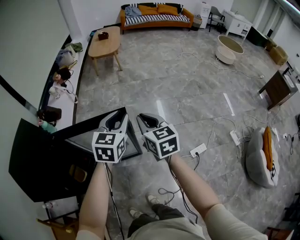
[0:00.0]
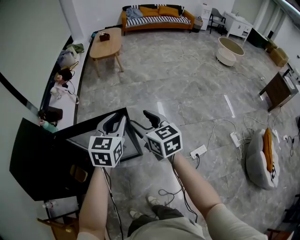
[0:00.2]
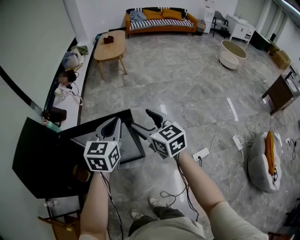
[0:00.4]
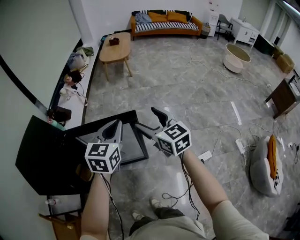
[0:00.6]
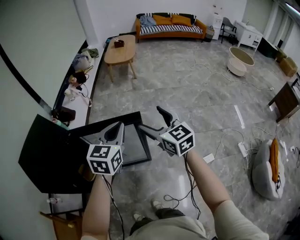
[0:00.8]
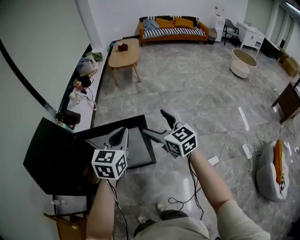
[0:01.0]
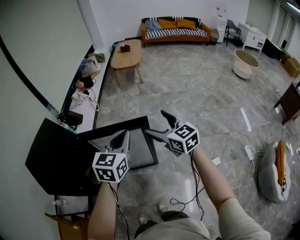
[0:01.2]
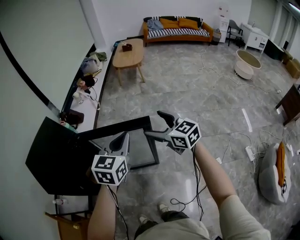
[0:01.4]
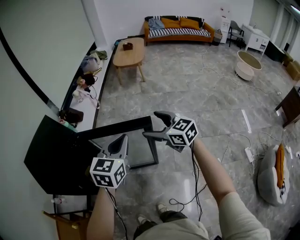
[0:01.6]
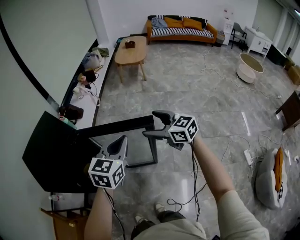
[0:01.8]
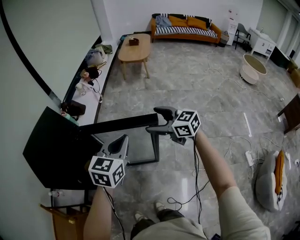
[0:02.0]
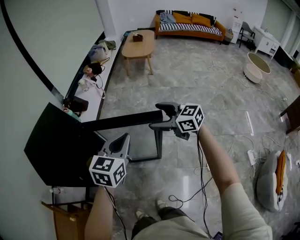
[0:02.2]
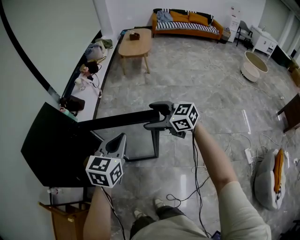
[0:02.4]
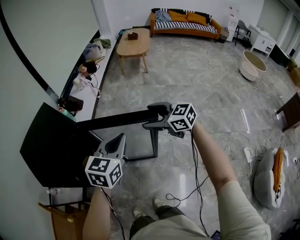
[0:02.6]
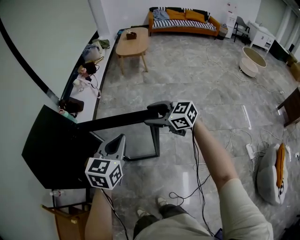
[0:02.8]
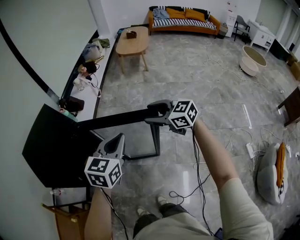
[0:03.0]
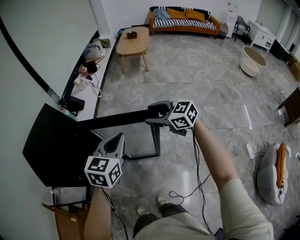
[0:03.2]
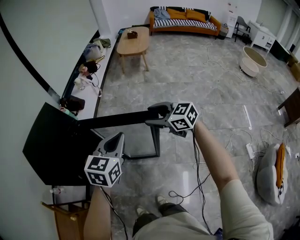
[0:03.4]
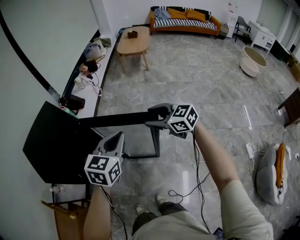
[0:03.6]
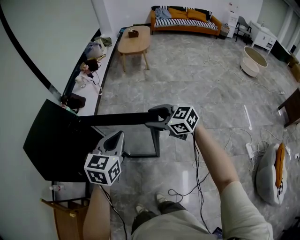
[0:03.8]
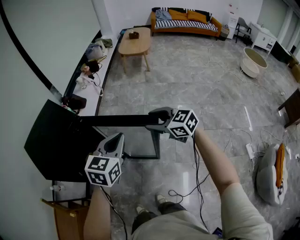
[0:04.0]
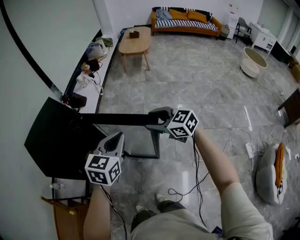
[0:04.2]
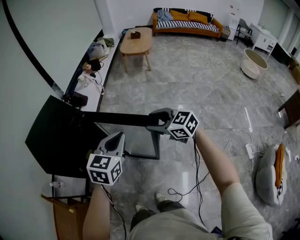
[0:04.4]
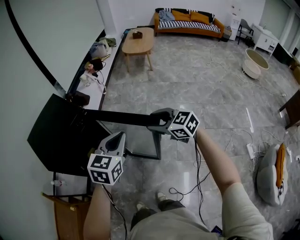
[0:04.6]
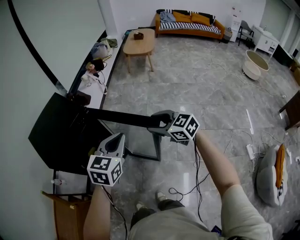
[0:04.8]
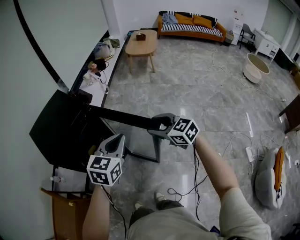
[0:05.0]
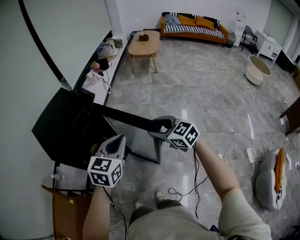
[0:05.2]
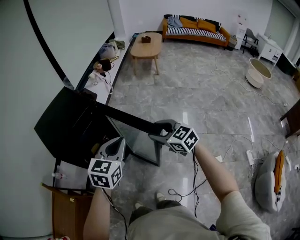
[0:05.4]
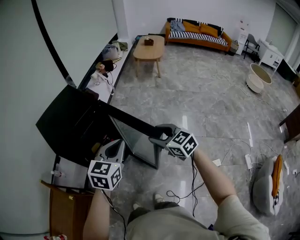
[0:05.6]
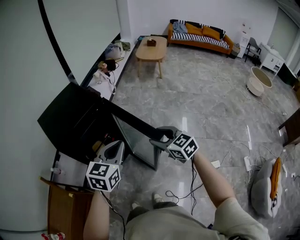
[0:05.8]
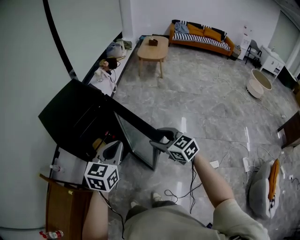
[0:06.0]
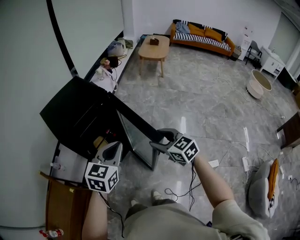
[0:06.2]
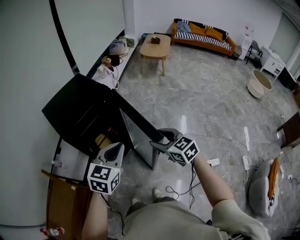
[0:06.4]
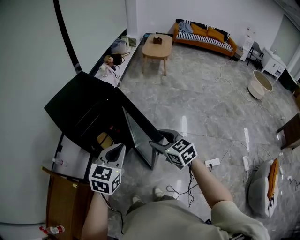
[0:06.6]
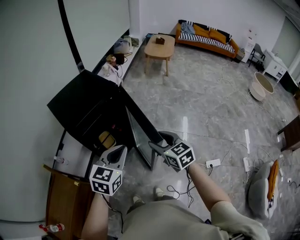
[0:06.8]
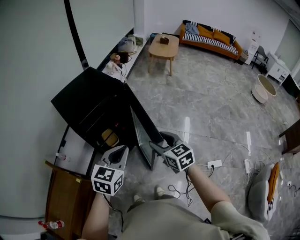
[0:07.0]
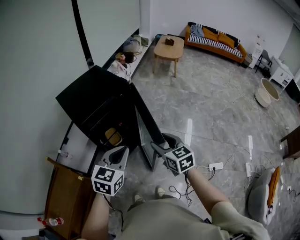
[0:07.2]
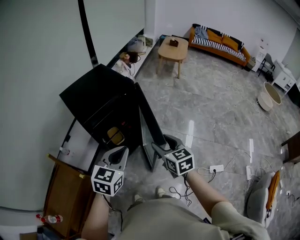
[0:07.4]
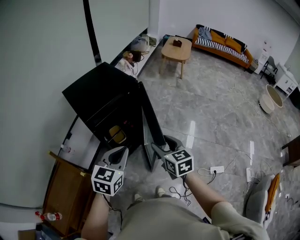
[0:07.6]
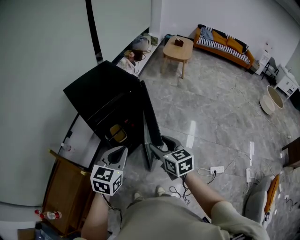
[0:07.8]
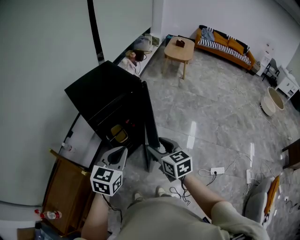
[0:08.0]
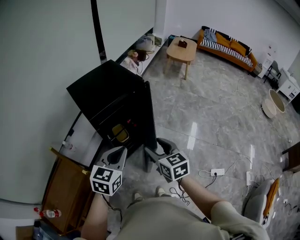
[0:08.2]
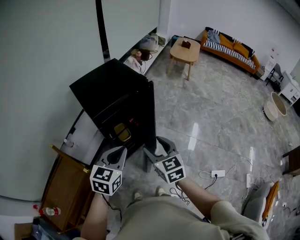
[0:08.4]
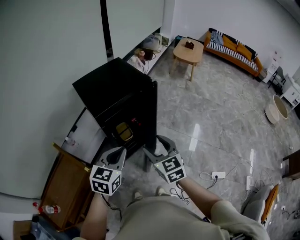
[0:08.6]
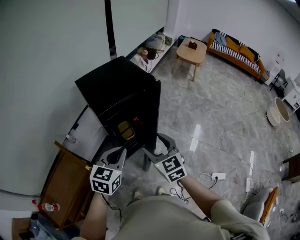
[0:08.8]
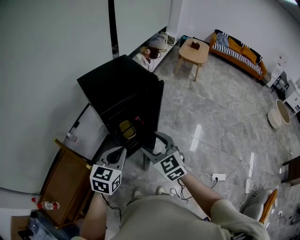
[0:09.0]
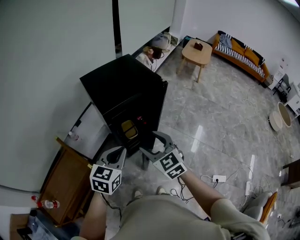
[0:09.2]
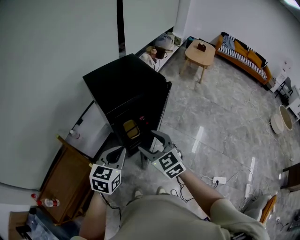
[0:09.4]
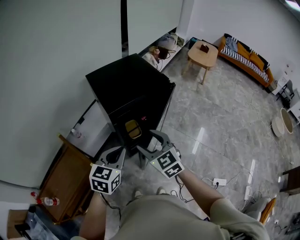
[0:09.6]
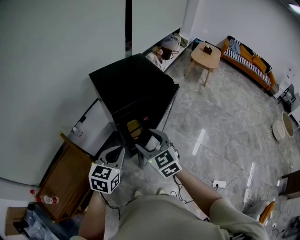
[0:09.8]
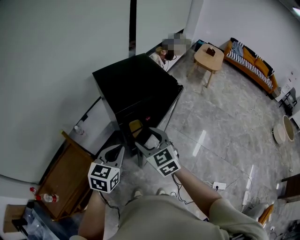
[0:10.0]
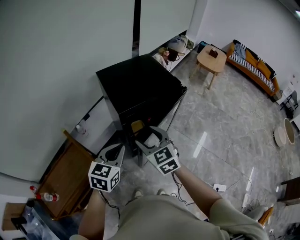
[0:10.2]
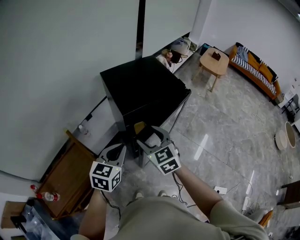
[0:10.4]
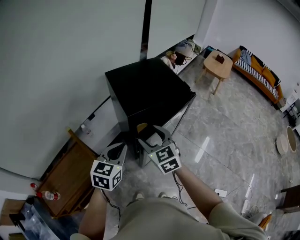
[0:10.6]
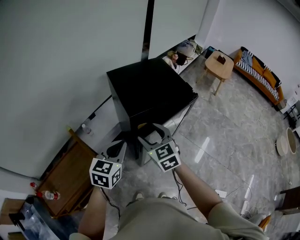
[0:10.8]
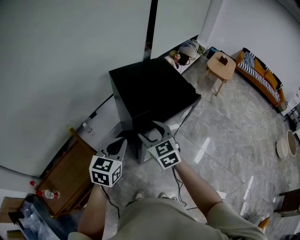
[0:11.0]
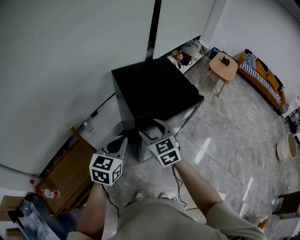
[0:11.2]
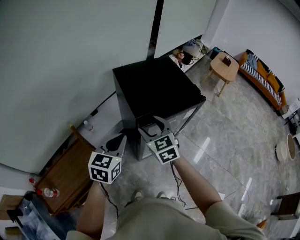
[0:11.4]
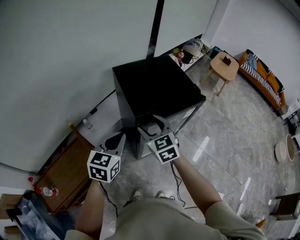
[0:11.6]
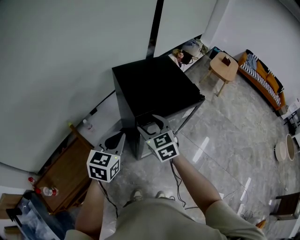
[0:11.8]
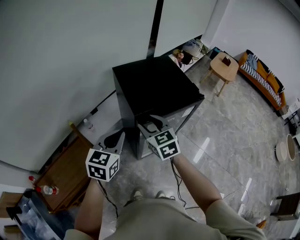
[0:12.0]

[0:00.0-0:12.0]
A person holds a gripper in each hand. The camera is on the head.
0:00.0 to 0:01.6: The right gripper moves to the left, approximately 5 cm, rotates approximately 30 degrees, and opens up. The left gripper travels to the left, backward and upward by approximately 15 cm.
0:01.6 to 0:03.0: The right gripper ends up roughly 5 cm from where it was, and closes. Meanwhile the left gripper ends up approximately 5 cm from where it was.
0:03.0 to 0:04.4: The left gripper changes place by roughly 5 cm; the right gripper heads backward, covering some 10 cm.
0:04.4 to 0:06.0: The two grippers go about 15 cm to the left and backward.
0:06.0 to 0:07.6: The left gripper is displaced to the left and backward by approximately 15 cm; the right gripper goes some 15 cm to the left.
0:07.6 to 0:09.0: The right gripper is displaced to the left by some 15 cm, and swivels some 30 degrees; the left gripper moves to the left, about 10 cm.
0:09.0 to 0:10.4: The right gripper is displaced to the left and forward by approximately 15 cm; the left gripper shifts roughly 10 cm to the left.
0:10.4 to 0:12.0: The grippers both shift forward by roughly 5 cm.

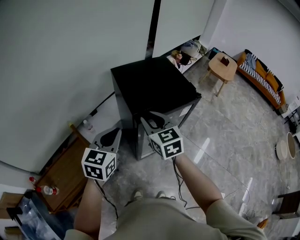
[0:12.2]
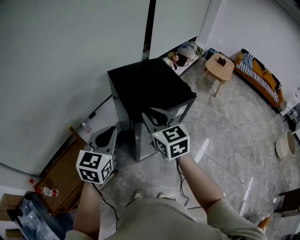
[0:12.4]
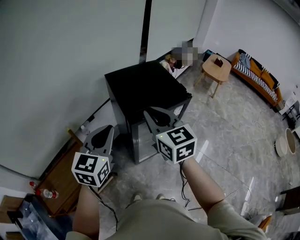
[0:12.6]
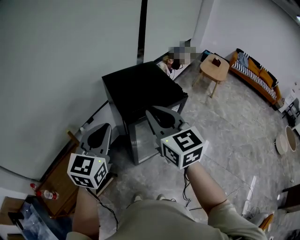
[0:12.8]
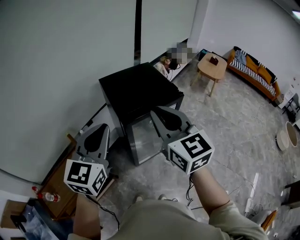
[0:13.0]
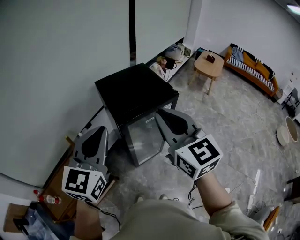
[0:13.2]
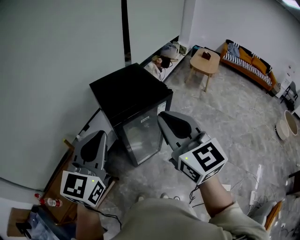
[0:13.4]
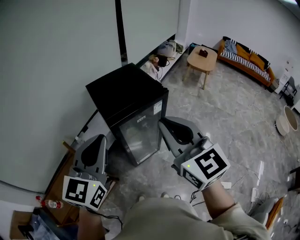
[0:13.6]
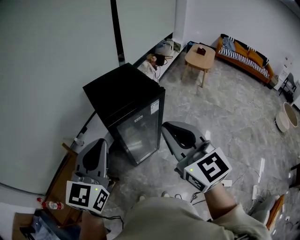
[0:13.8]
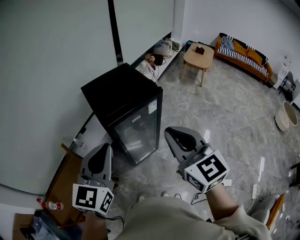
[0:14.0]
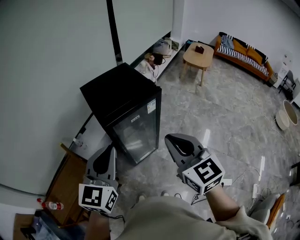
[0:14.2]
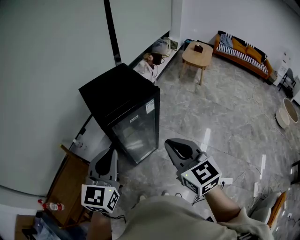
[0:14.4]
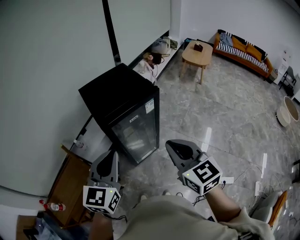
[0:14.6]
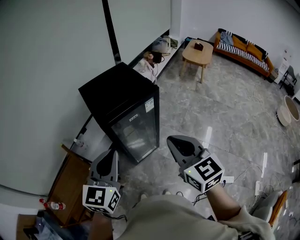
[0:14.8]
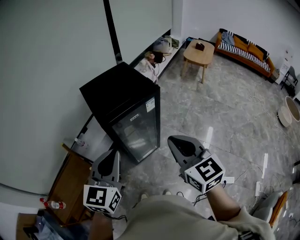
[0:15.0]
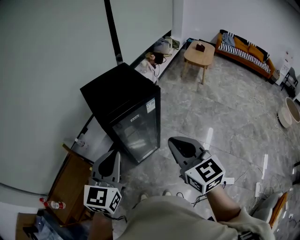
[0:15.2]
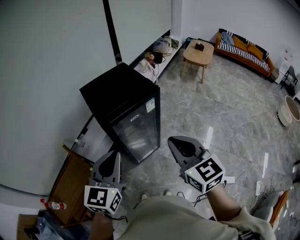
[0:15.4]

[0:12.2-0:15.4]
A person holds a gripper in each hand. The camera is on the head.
0:12.2 to 0:13.8: The right gripper heads to the right, backward and upward, covering about 30 cm, while the left gripper moves upward, backward and to the right, about 25 cm.
0:13.8 to 0:15.4: The grippers both shift downward by about 10 cm.

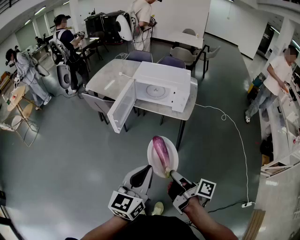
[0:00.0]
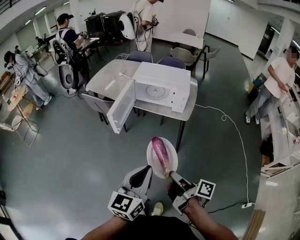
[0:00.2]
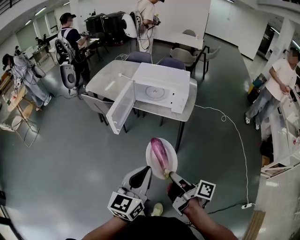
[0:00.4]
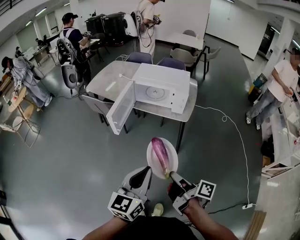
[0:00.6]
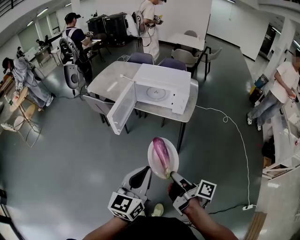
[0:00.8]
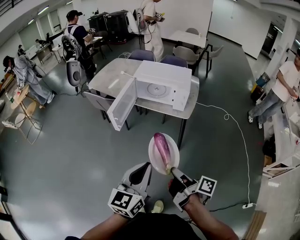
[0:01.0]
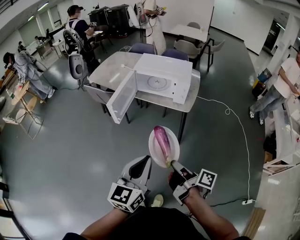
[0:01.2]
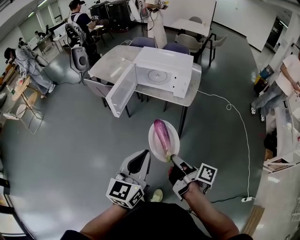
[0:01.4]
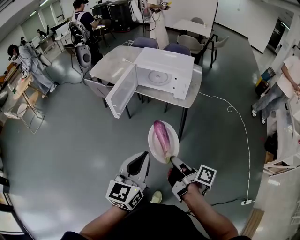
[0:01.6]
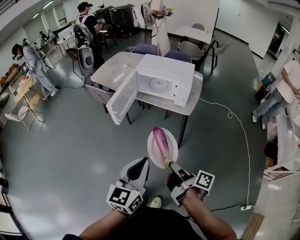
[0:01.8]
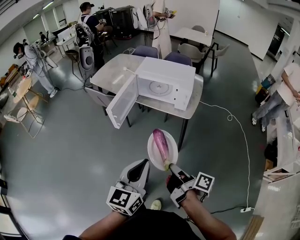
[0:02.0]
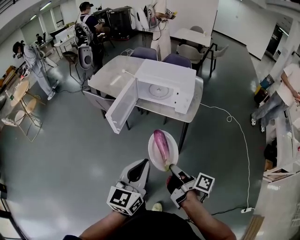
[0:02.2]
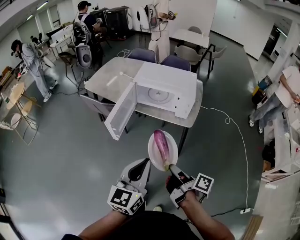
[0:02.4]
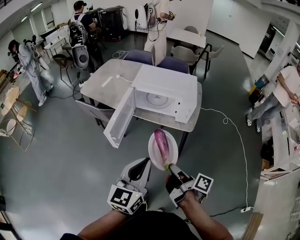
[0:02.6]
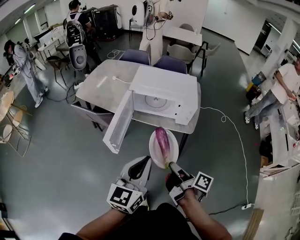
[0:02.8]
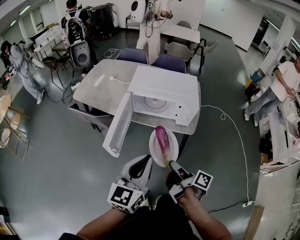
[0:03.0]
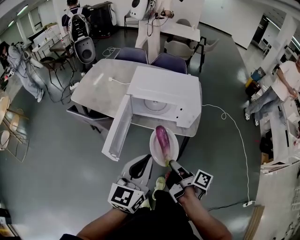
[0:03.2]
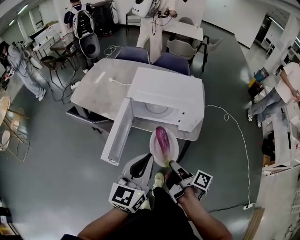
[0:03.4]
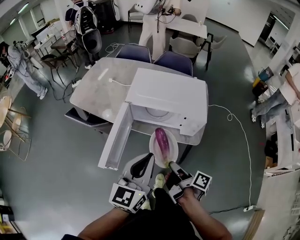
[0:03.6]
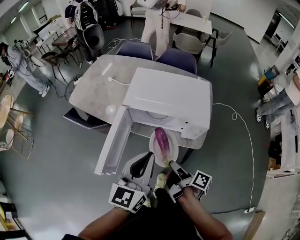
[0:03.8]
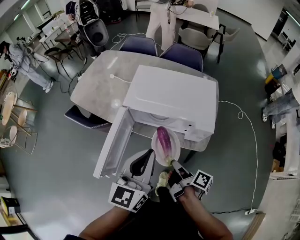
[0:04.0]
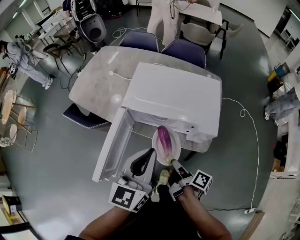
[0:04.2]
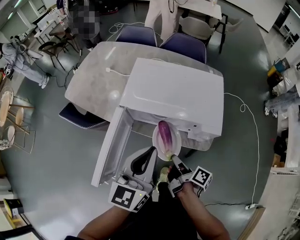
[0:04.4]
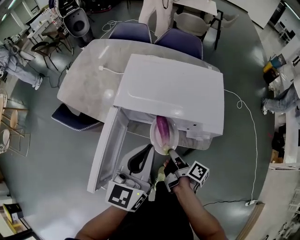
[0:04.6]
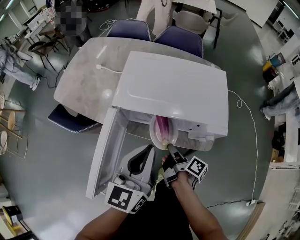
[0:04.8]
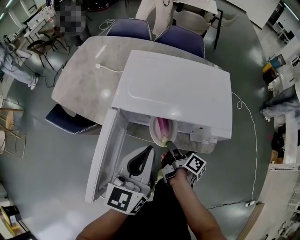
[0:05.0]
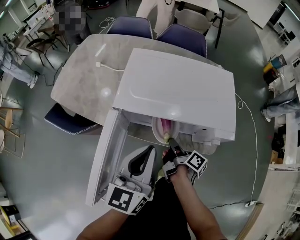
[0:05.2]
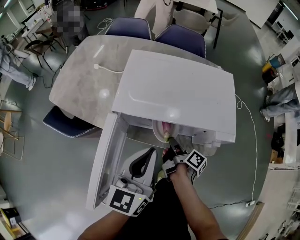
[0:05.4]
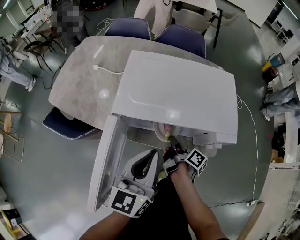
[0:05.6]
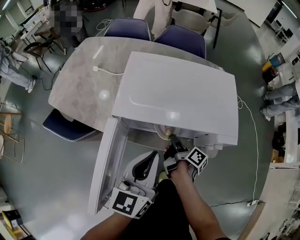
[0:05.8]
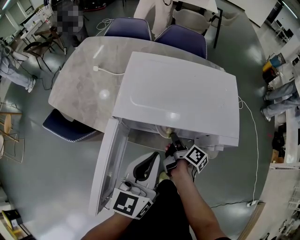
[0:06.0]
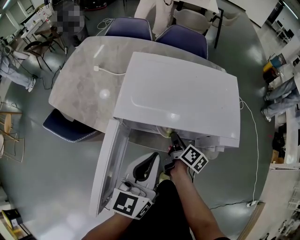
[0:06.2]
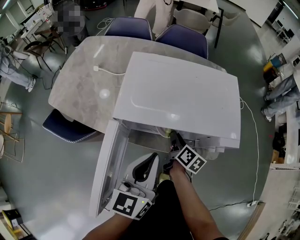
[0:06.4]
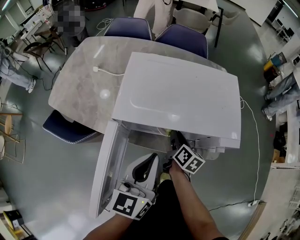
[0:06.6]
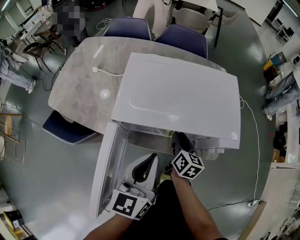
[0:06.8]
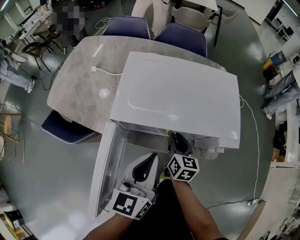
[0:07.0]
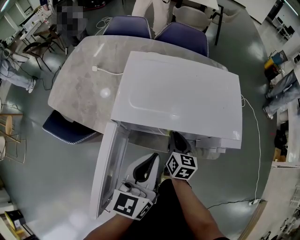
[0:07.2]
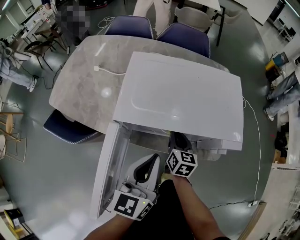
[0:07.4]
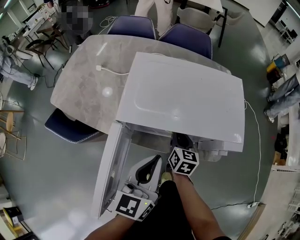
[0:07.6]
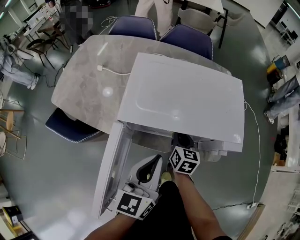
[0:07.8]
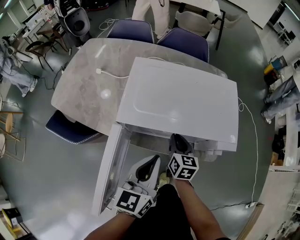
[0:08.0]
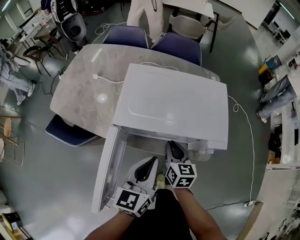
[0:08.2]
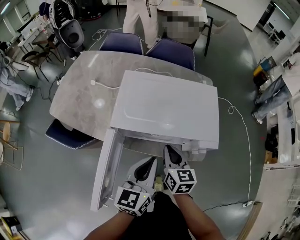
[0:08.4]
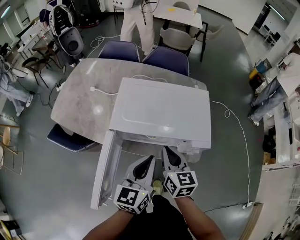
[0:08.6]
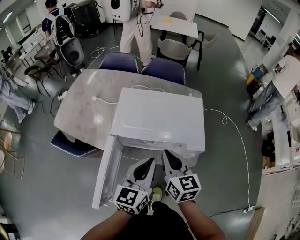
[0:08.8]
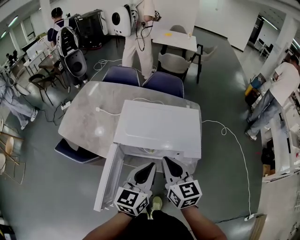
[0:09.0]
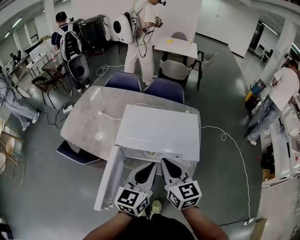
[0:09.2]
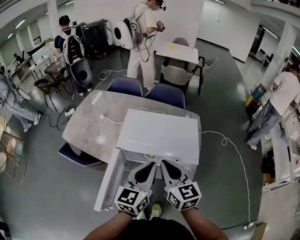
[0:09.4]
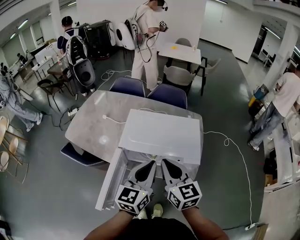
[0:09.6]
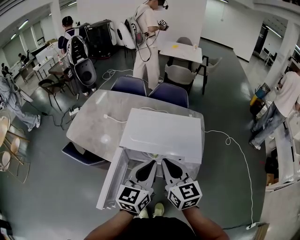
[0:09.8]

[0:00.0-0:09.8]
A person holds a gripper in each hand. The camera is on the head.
0:00.0 to 0:01.4: The grippers move only a little.
0:01.4 to 0:02.8: Both grippers move forward, roughly 20 cm.
0:02.8 to 0:04.2: The right gripper heads forward and downward, covering roughly 25 cm. The left gripper moves forward, about 25 cm.
0:04.2 to 0:05.6: The right gripper heads forward and downward, covering approximately 20 cm. The left gripper travels downward and forward by some 15 cm.
0:05.6 to 0:07.0: The right gripper twists approximately 60 degrees counterclockwise, seen from behind.
0:07.0 to 0:08.4: The right gripper travels upward by about 10 cm.
0:08.4 to 0:09.8: The left gripper is displaced upward by roughly 15 cm, while the right gripper goes approximately 20 cm upward, and swivels about 20 degrees.
